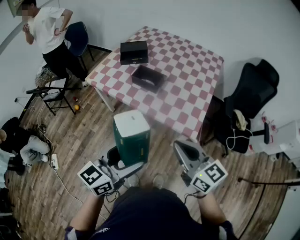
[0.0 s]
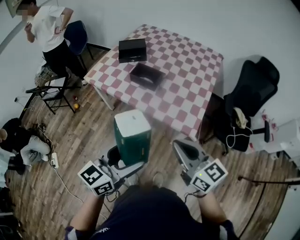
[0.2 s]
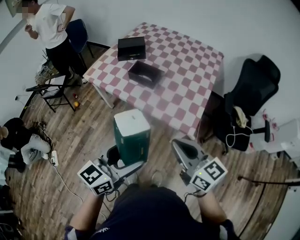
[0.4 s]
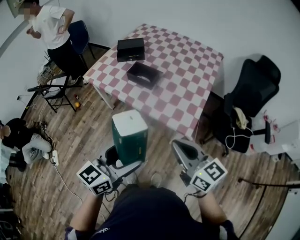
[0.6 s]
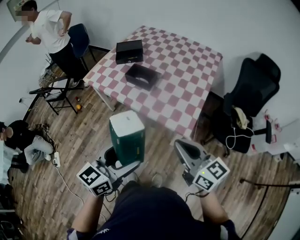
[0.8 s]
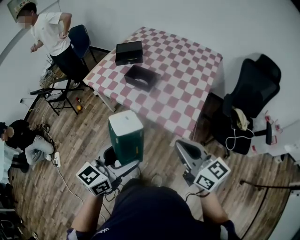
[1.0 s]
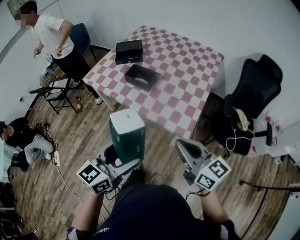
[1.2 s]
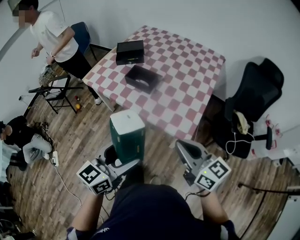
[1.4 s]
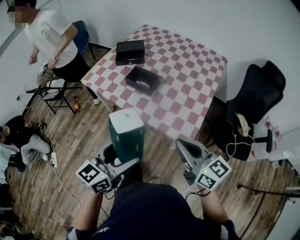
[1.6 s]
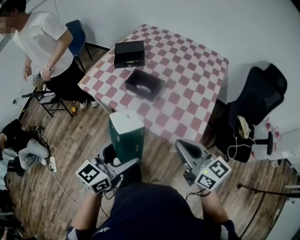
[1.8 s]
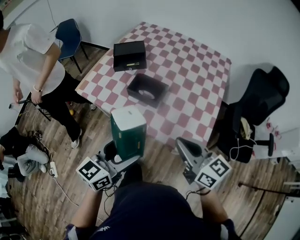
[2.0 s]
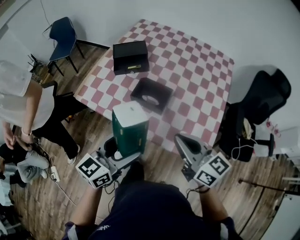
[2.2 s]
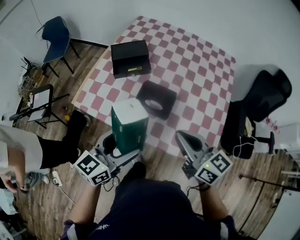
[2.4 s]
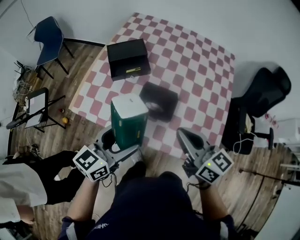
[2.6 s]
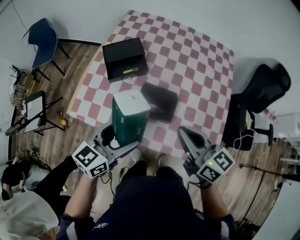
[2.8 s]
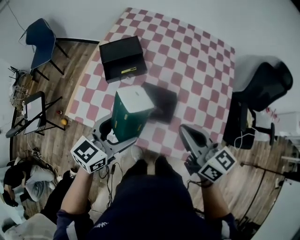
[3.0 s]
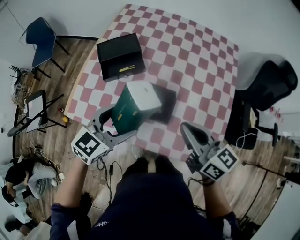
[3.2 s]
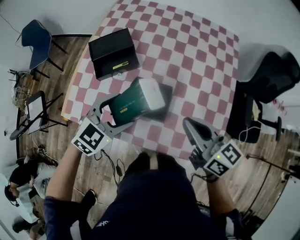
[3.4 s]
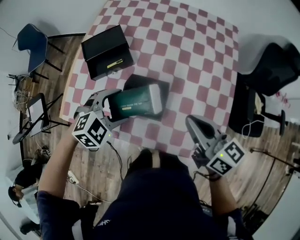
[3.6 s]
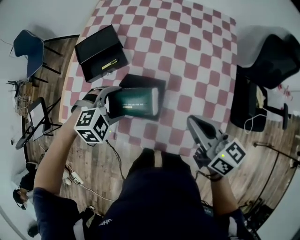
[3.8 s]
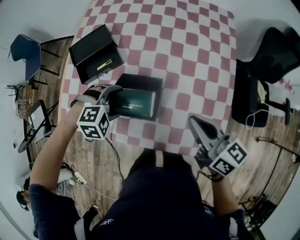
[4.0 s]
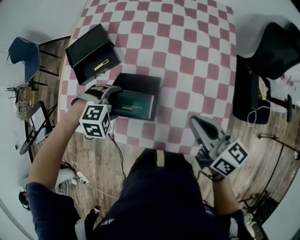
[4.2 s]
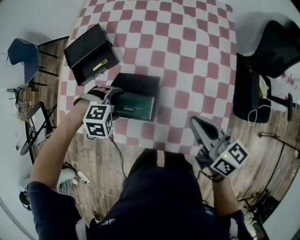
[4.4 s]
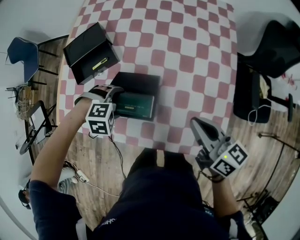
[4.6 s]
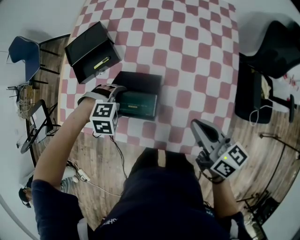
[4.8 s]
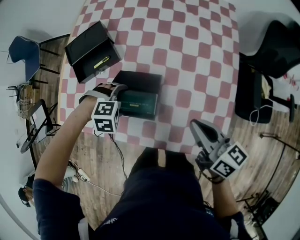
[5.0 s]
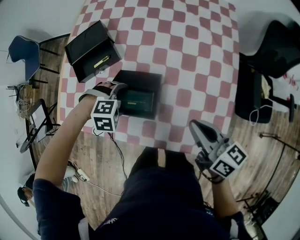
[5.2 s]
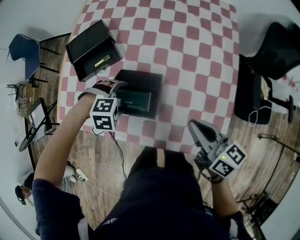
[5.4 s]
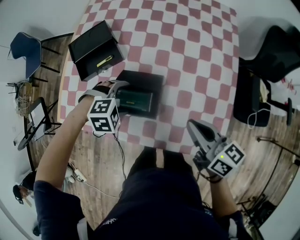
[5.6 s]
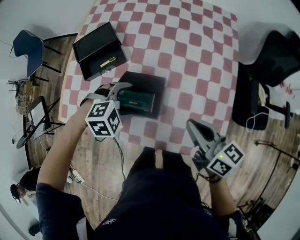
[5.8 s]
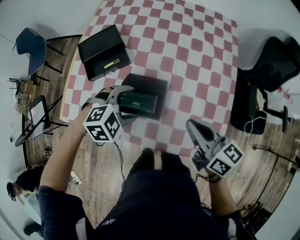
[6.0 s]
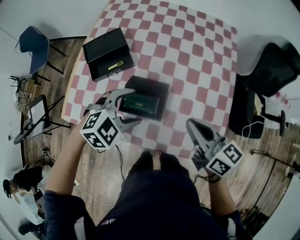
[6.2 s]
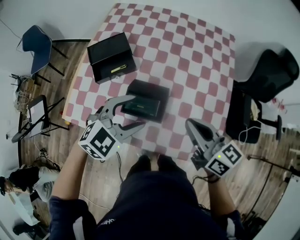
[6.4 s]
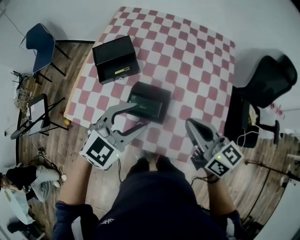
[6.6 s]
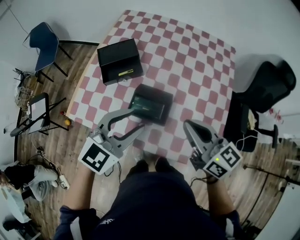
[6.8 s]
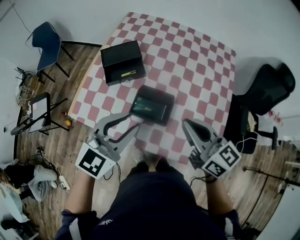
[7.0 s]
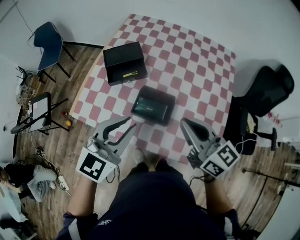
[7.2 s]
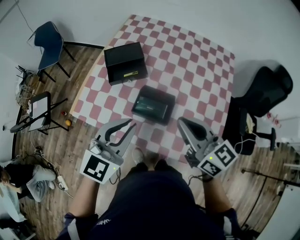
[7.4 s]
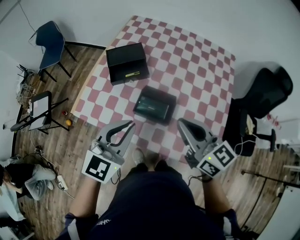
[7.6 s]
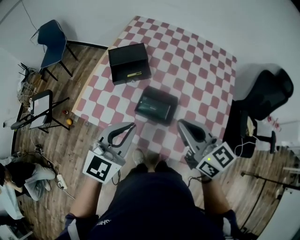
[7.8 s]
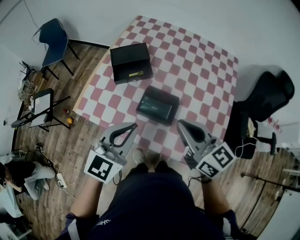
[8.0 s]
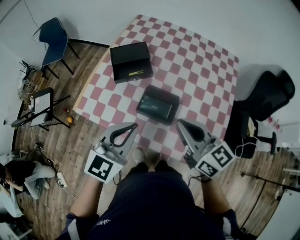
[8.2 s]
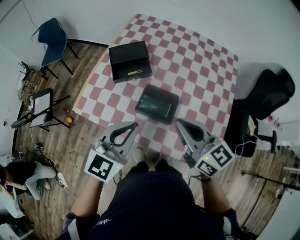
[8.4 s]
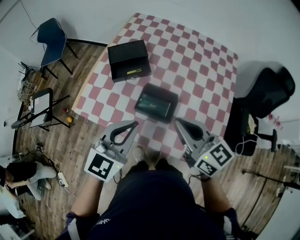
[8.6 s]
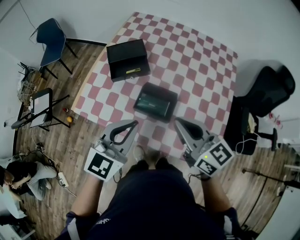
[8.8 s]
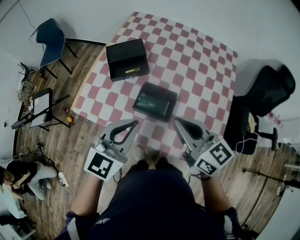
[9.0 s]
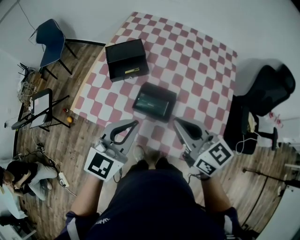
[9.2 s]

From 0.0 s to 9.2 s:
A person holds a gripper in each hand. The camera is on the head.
From 0.0 s to 1.6 s: The left gripper moves forward, about 5 cm; the right gripper shifts approximately 10 cm to the right and forward.
From 1.6 s to 3.0 s: The grippers both shift forward and to the left by some 40 cm. The left gripper swivels some 20 degrees.
From 3.0 s to 4.6 s: The left gripper travels downward by approximately 20 cm, and angles its fingers downward, by about 60 degrees. The right gripper moves approximately 20 cm.
From 4.6 s to 6.2 s: The left gripper is displaced upward by some 15 cm, and points its fingers approximately 30 degrees further upward. Meanwhile the right gripper shifts by roughly 5 cm.
From 6.2 s to 7.6 s: The right gripper is displaced to the left and upward by some 15 cm; the left gripper moves upward, backward and to the left, some 20 cm, tilts its fingers about 30 degrees upward, and closes its fingers.
From 7.6 s to 9.2 s: The grippers make only small movements.

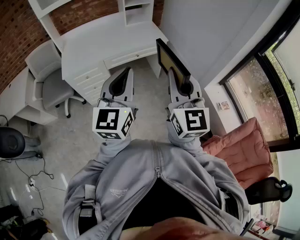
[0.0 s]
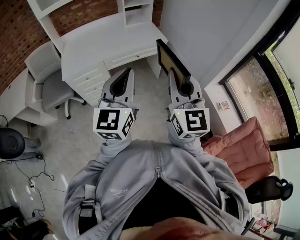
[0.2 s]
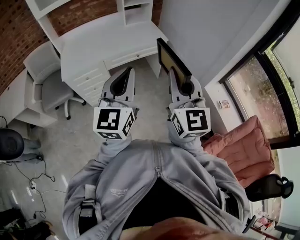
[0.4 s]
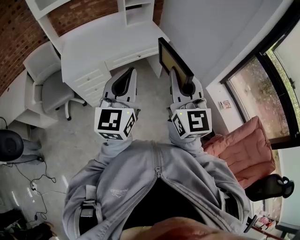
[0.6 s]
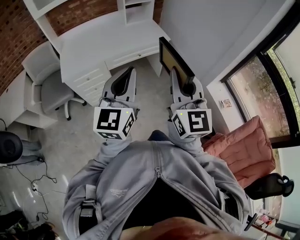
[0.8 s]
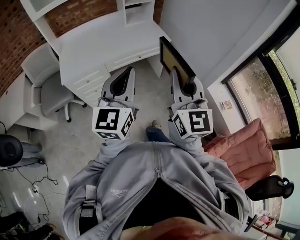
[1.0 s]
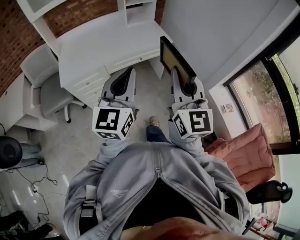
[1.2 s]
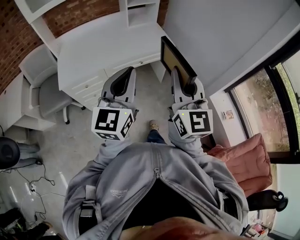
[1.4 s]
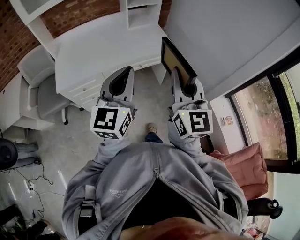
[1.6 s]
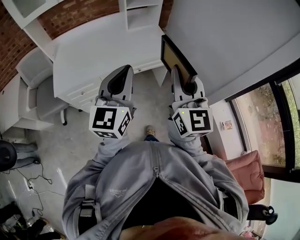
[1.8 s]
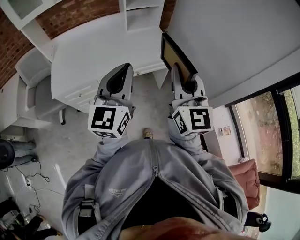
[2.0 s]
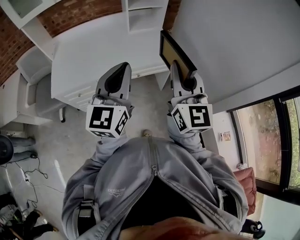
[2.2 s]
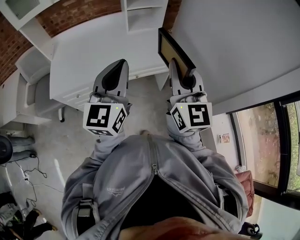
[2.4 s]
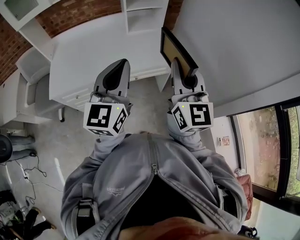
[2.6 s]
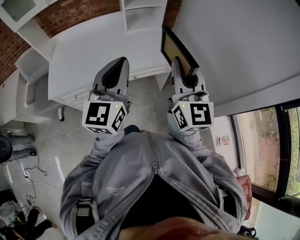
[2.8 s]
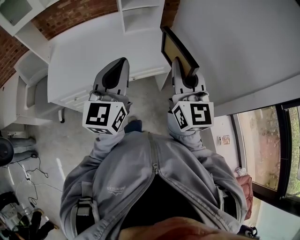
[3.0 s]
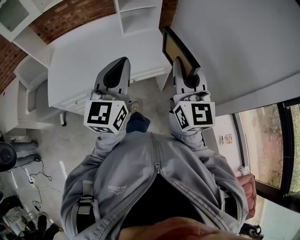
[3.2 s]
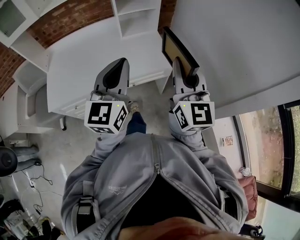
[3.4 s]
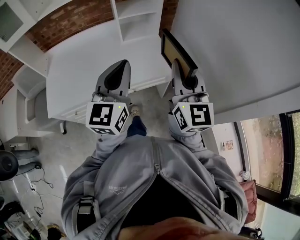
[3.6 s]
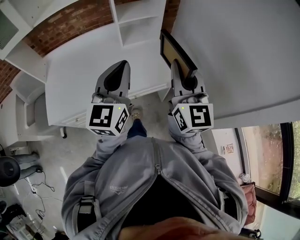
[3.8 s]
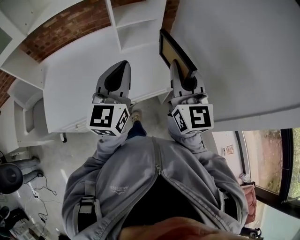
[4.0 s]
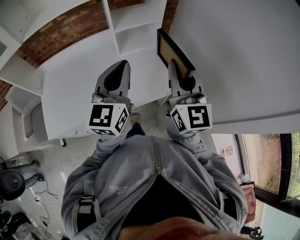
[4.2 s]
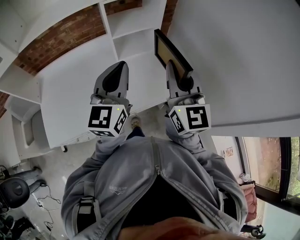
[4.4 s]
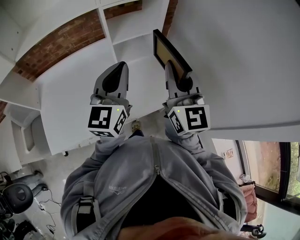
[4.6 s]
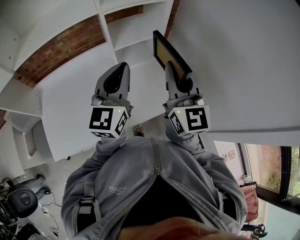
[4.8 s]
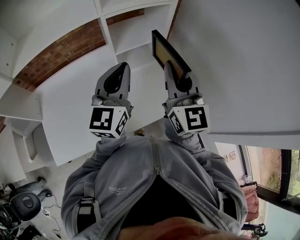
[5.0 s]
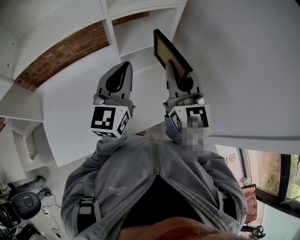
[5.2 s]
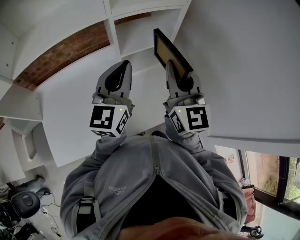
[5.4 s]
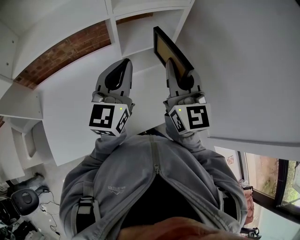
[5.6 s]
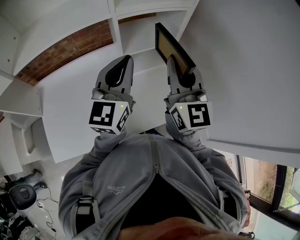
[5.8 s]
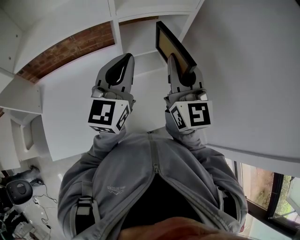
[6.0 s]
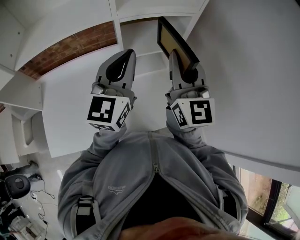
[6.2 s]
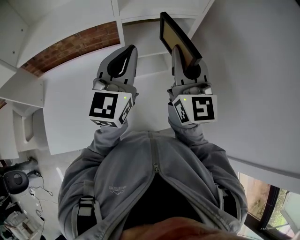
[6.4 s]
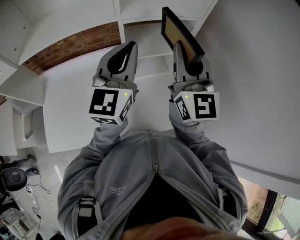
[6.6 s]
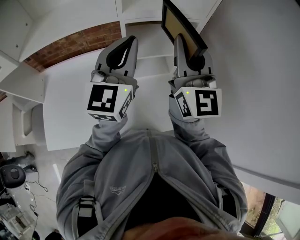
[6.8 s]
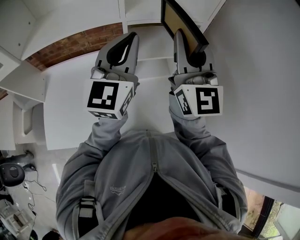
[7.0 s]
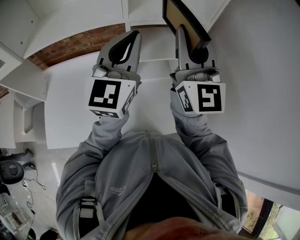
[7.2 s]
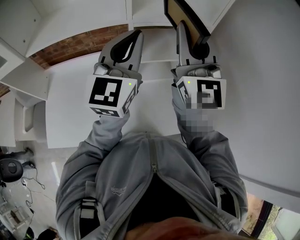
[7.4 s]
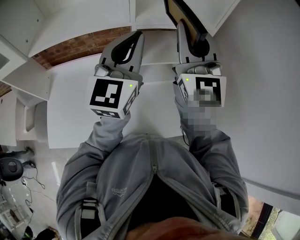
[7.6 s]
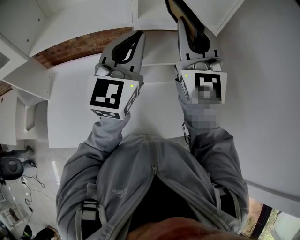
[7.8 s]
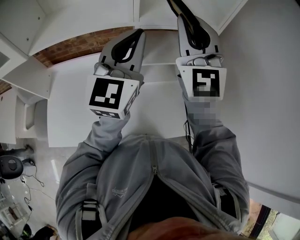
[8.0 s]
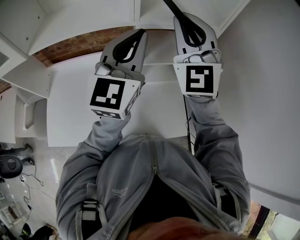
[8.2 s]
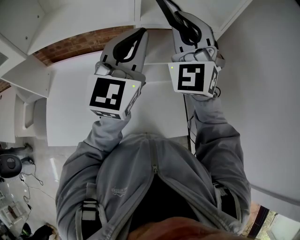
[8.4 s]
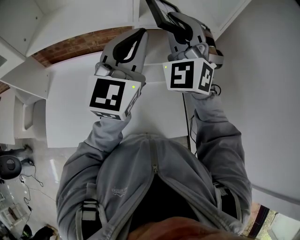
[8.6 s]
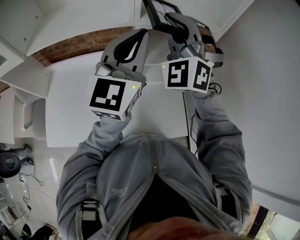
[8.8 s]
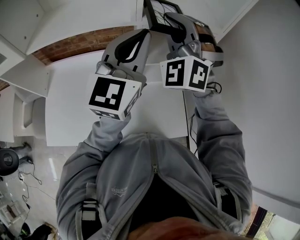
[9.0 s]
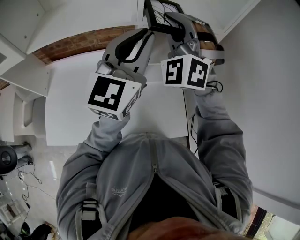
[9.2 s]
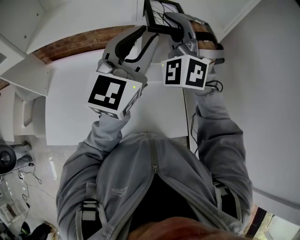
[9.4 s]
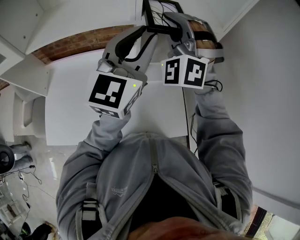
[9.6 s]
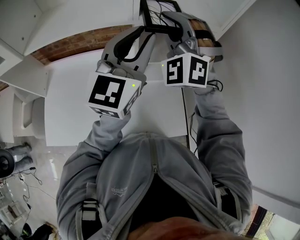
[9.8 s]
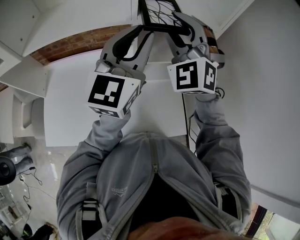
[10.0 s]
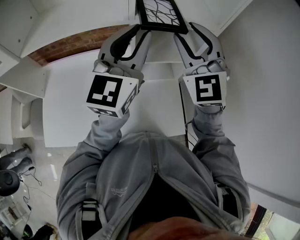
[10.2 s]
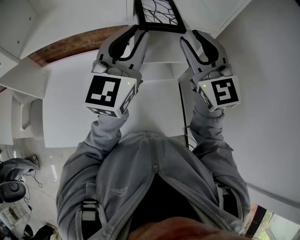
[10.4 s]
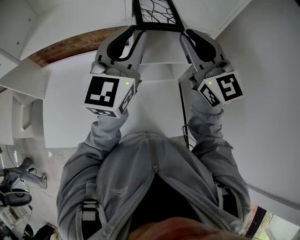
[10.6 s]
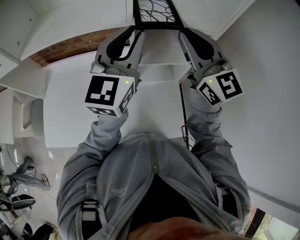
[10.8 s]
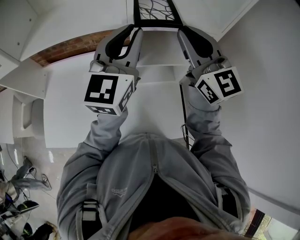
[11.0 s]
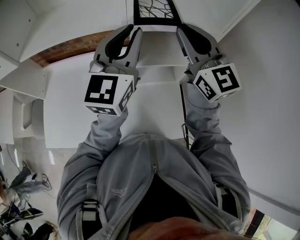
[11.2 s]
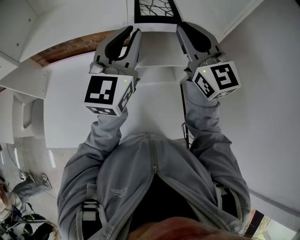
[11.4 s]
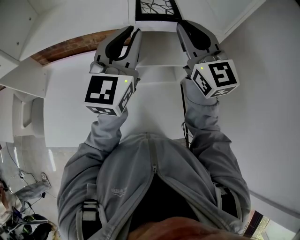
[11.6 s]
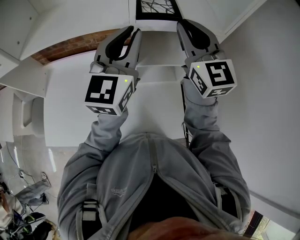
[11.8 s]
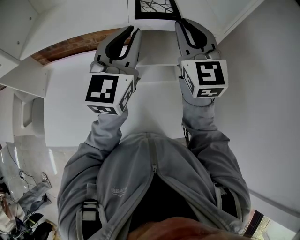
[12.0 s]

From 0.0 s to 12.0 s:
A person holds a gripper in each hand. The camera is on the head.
From 0.0 s to 1.6 s: Both grippers travel together forward, some 20 cm.
From 1.6 s to 3.0 s: Both grippers travel together forward and to the right, some 20 cm.
From 3.0 s to 4.4 s: Both grippers travel together forward, roughly 25 cm.
From 4.4 s to 6.0 s: Both grippers move forward, approximately 15 cm.
From 6.0 s to 7.6 s: The right gripper heads upward and forward, covering some 15 cm, and swivels some 20 degrees; the left gripper goes some 5 cm upward.
From 7.6 s to 9.0 s: The right gripper is displaced forward, to the left and downward by some 10 cm, and rolls counterclockwise, seen from behind, by approximately 50 degrees.
From 9.0 s to 10.4 s: The right gripper heads to the right, covering some 10 cm, rolls clockwise, seen from behind, by approximately 40 degrees, and opens; the left gripper opens up.
From 10.4 s to 12.0 s: The right gripper travels forward by some 5 cm, and closes its fingers.

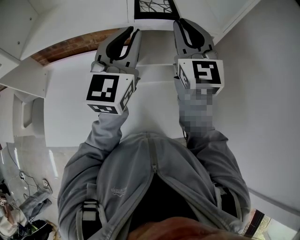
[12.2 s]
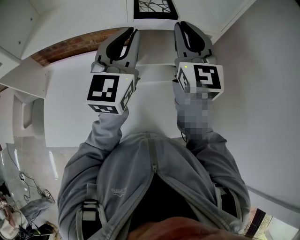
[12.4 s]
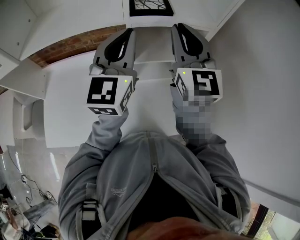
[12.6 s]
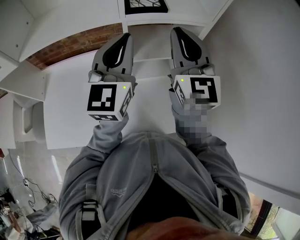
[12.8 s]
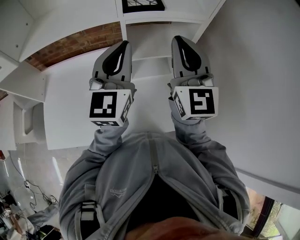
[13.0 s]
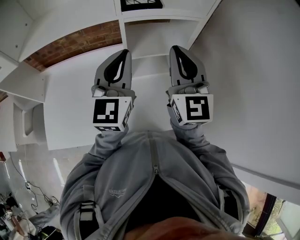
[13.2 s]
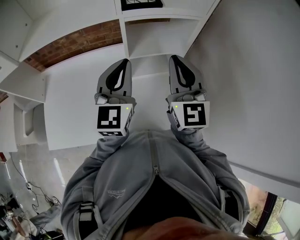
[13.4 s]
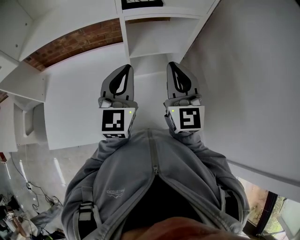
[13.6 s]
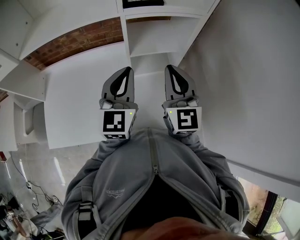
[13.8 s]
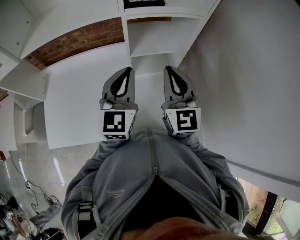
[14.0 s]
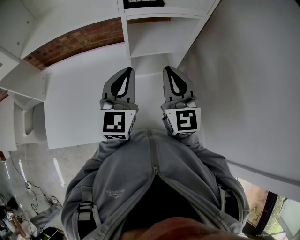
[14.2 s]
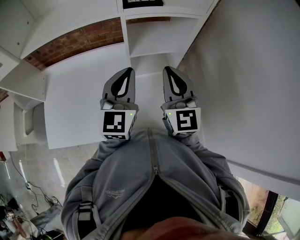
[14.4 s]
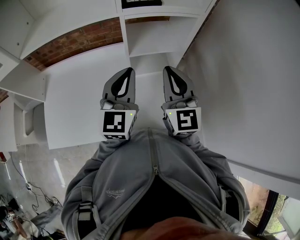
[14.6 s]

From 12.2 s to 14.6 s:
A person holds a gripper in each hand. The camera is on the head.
From 12.2 s to 13.4 s: Both grippers travel together backward and downward, about 15 cm.
From 13.4 s to 14.6 s: The right gripper changes place by some 5 cm.
